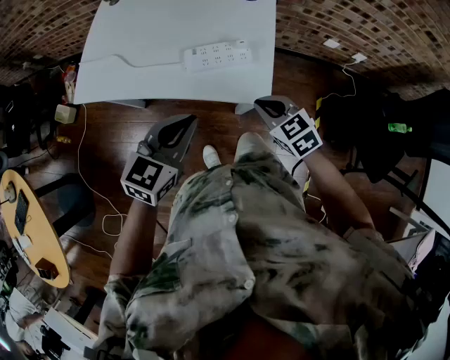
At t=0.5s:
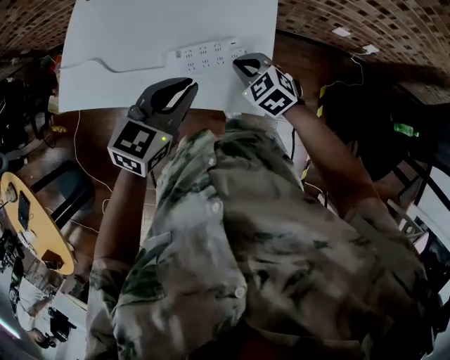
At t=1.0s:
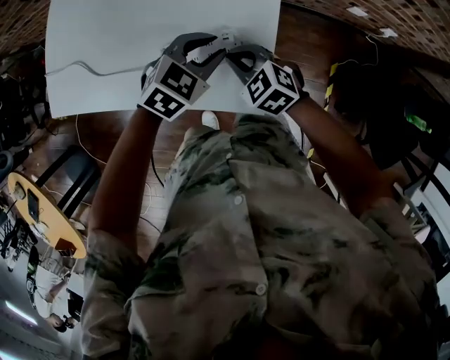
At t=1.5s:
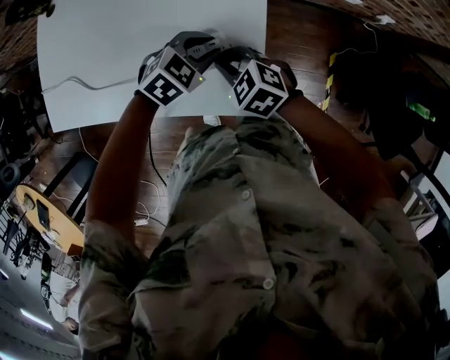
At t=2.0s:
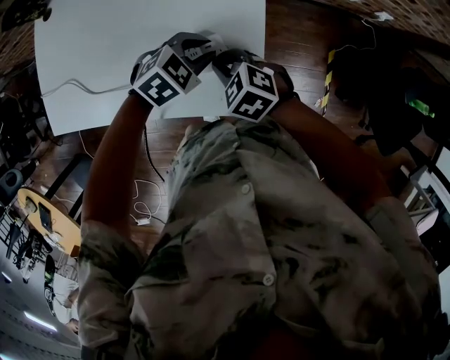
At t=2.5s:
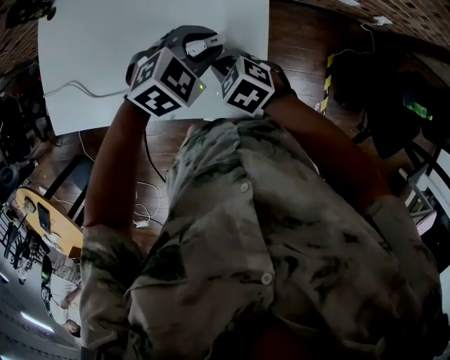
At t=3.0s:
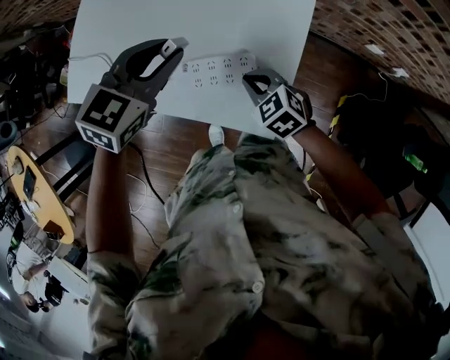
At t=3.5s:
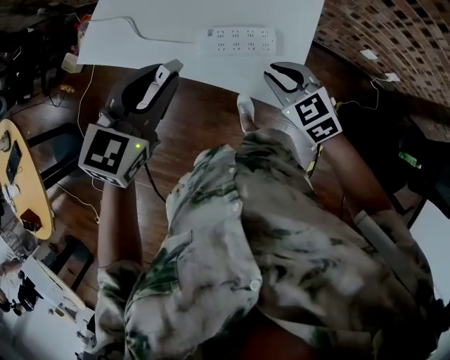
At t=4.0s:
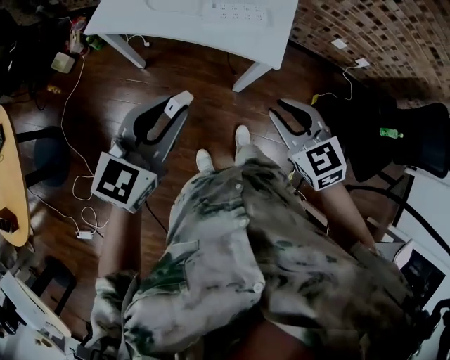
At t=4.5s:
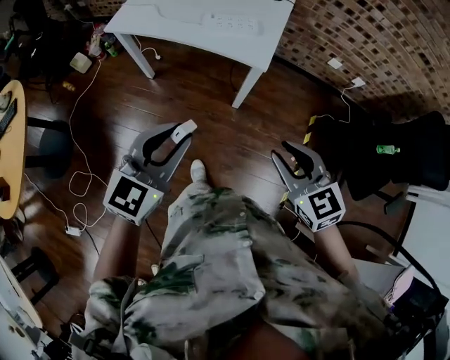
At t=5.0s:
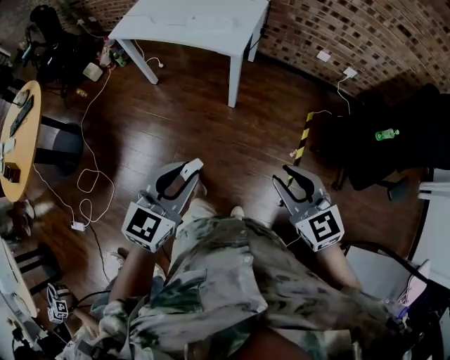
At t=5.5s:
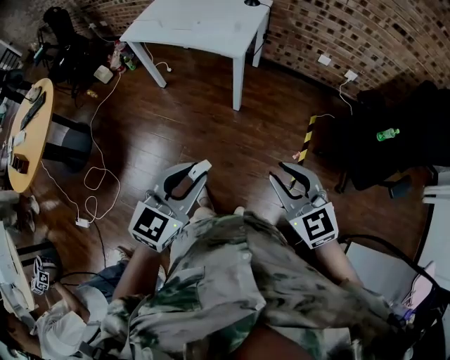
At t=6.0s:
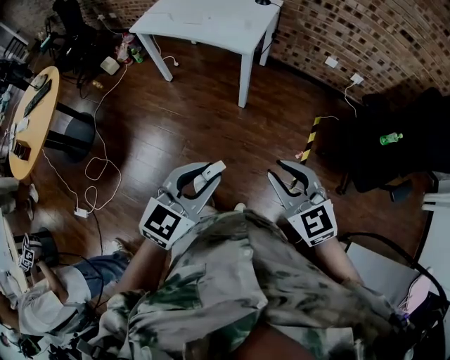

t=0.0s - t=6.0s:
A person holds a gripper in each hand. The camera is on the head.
t=0.0s - t=2.0s: The left gripper ends up approximately 35 cm from where it was, angles its fingers downward, by roughly 30 degrees, and opens its fingers. Meanwhile the right gripper ends up some 20 cm from where it was.
t=2.0s - t=4.0s: The left gripper changes place by roughly 50 cm, and tips its fingers upward by roughly 40 degrees. Meanwhile the right gripper ends up roughly 40 cm from where it was, swivels some 20 degrees, and opens its fingers.
t=4.0s - t=6.0s: The pair of grippers is taken backward and to the right, some 40 cm.

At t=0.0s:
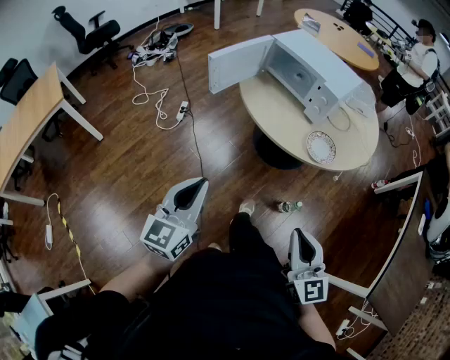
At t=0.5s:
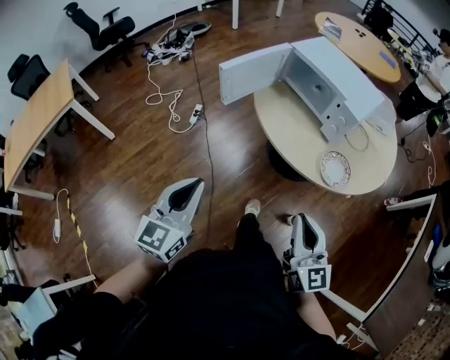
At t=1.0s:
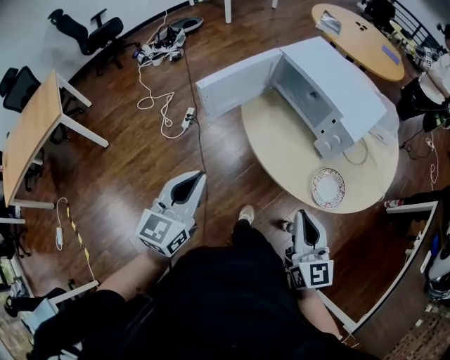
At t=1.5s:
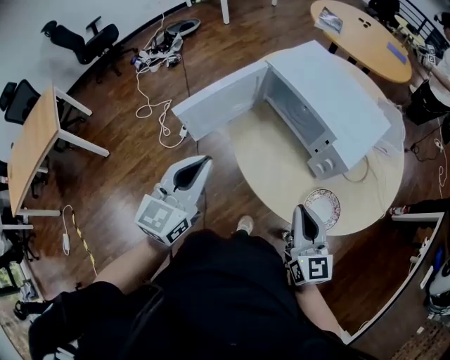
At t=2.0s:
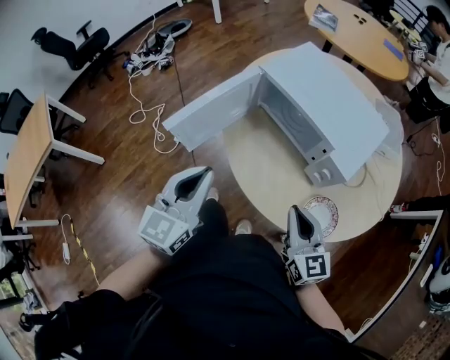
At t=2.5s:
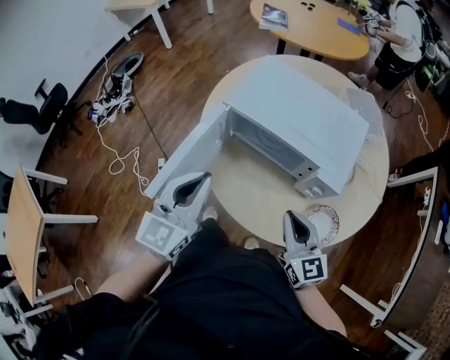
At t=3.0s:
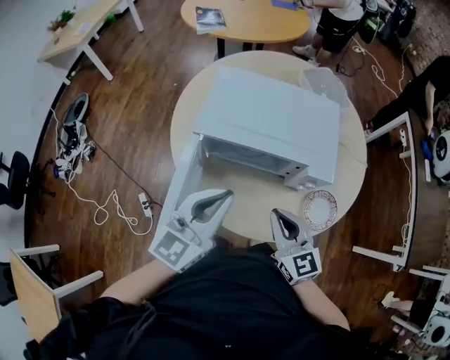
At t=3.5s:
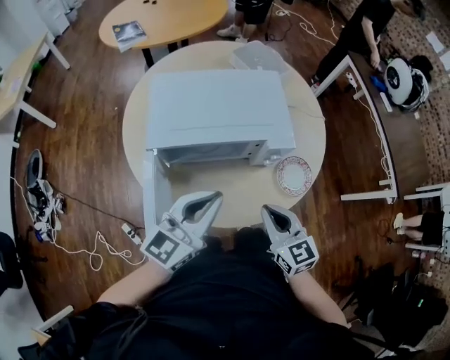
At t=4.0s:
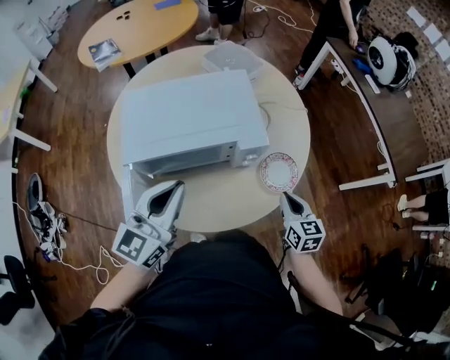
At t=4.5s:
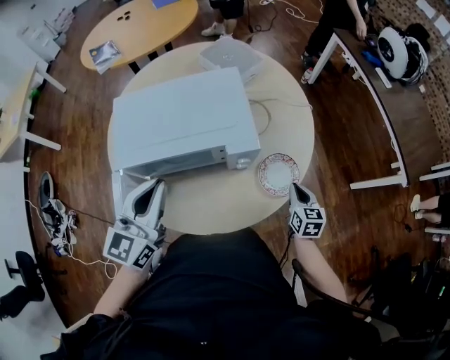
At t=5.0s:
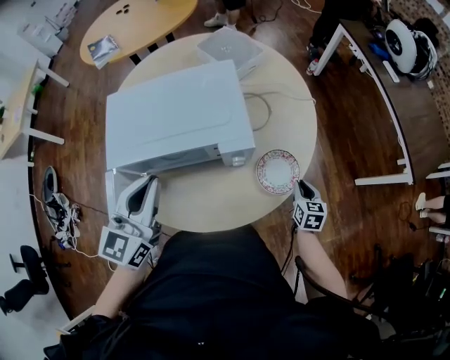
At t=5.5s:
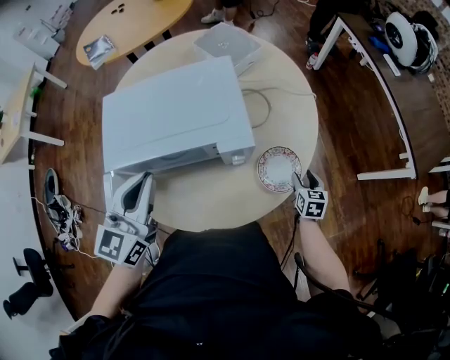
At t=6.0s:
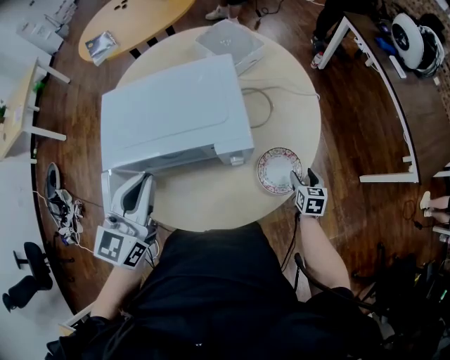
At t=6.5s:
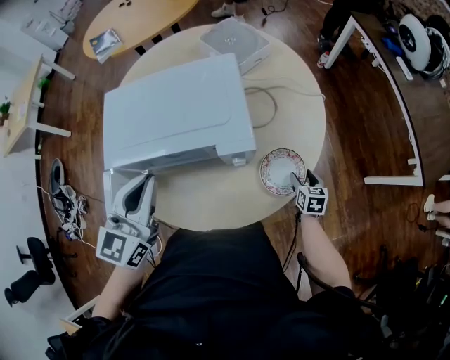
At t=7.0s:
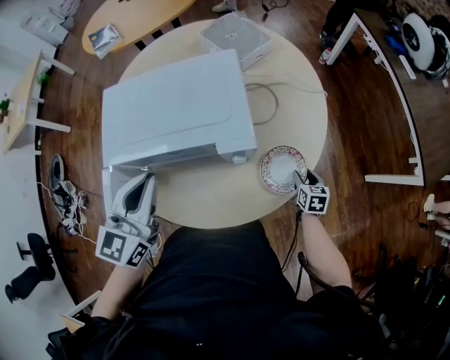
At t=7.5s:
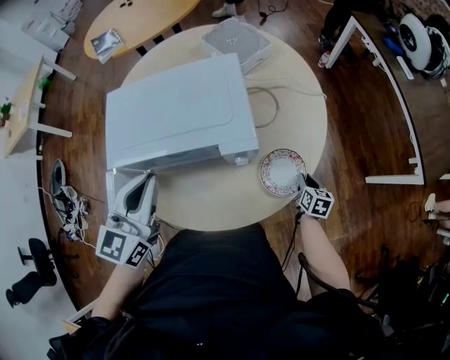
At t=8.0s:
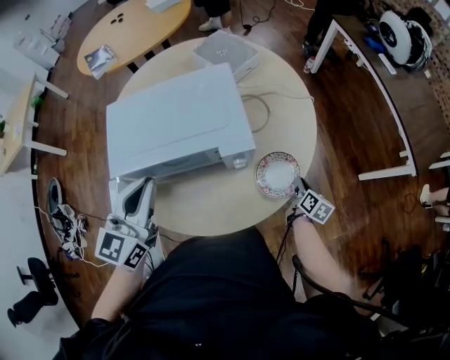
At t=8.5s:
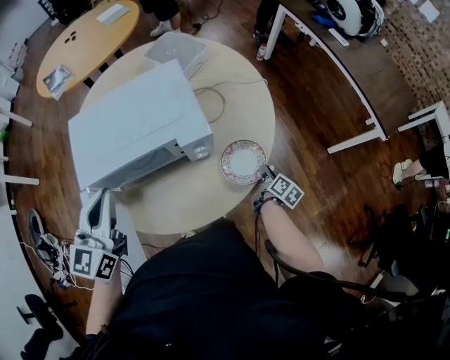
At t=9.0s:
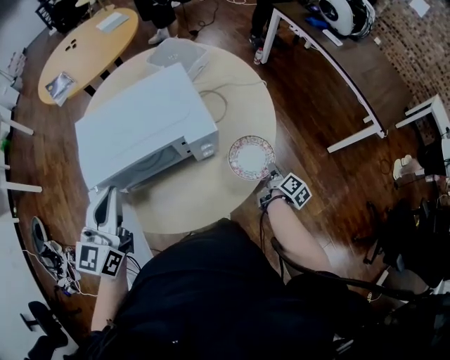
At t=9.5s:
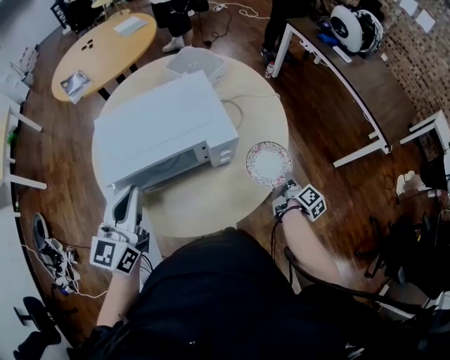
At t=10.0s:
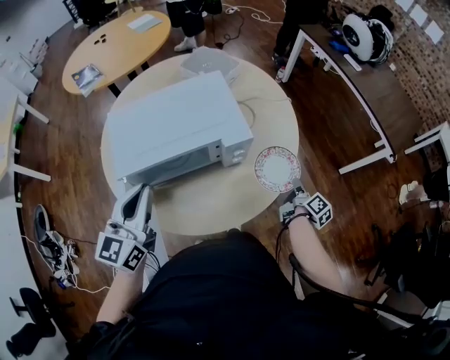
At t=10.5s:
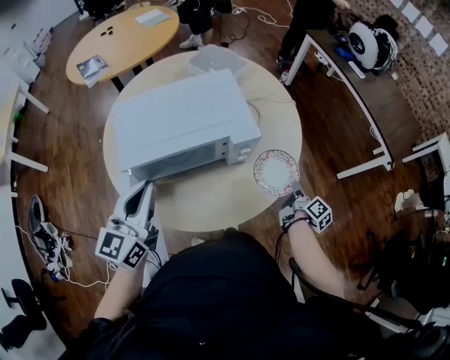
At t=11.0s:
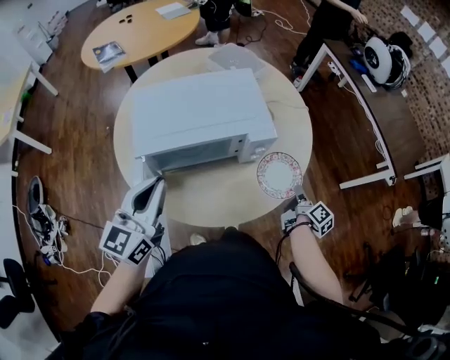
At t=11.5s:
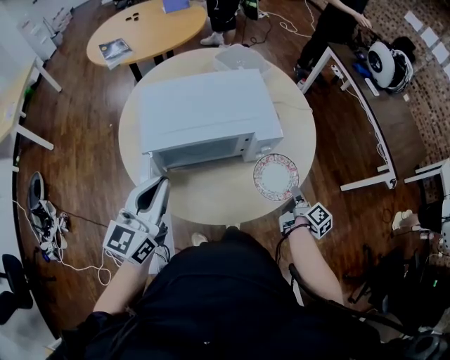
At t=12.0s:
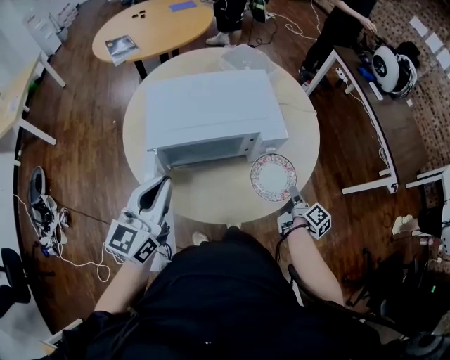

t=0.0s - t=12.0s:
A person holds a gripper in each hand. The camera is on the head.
t=0.0s - t=2.0s: Both grippers move forward, about 35 cm.
t=2.0s - t=4.0s: The left gripper changes place by some 20 cm, and changes its angle by approximately 60 degrees; the right gripper changes place by some 10 cm, and swivels approximately 70 degrees.
t=4.0s - t=6.0s: The right gripper is displaced downward, forward and to the right by approximately 25 cm, and opens up.
t=6.0s - t=8.0s: The right gripper swivels approximately 40 degrees, and closes its fingers.
t=8.0s - t=10.0s: The right gripper heads upward and backward, covering approximately 10 cm, and turns by some 40 degrees; the left gripper changes place by approximately 5 cm.
t=10.0s - t=12.0s: The right gripper goes approximately 10 cm to the left; the left gripper shifts by some 5 cm.

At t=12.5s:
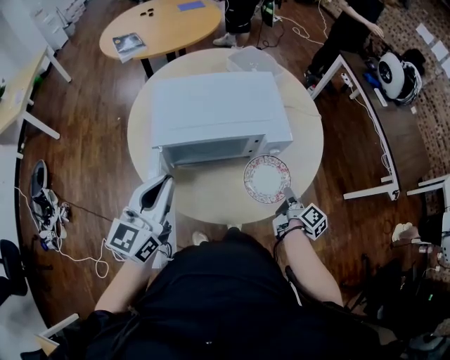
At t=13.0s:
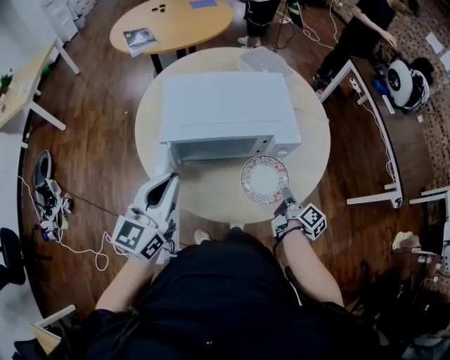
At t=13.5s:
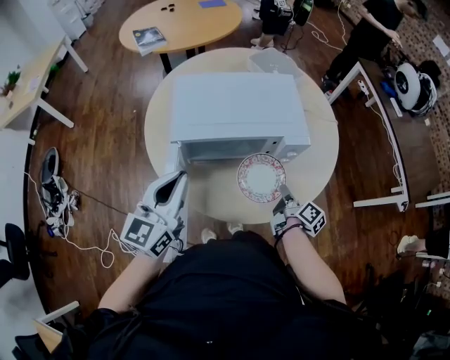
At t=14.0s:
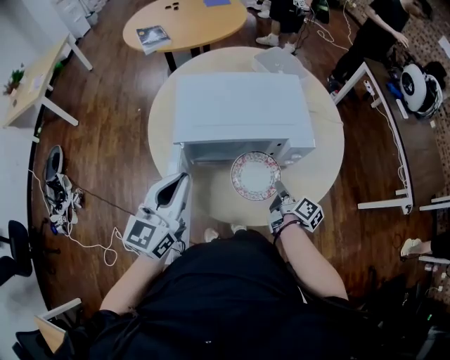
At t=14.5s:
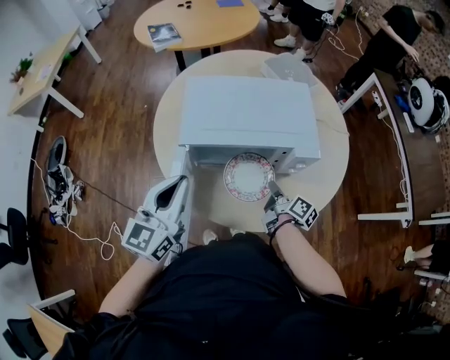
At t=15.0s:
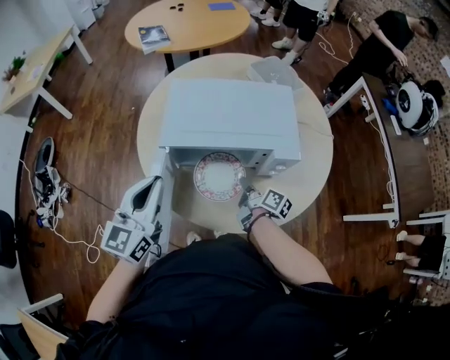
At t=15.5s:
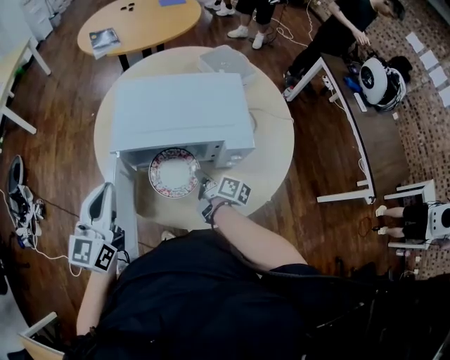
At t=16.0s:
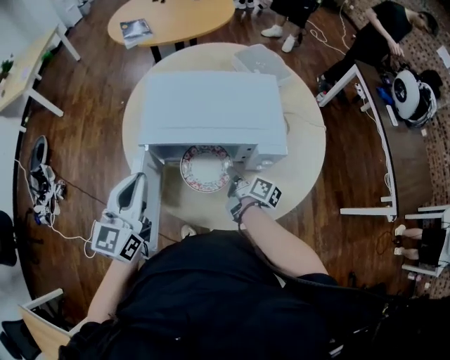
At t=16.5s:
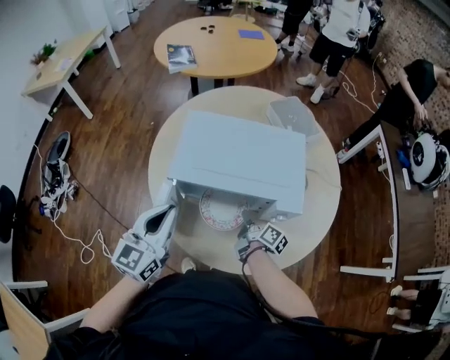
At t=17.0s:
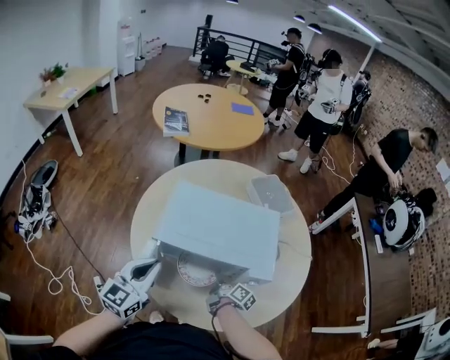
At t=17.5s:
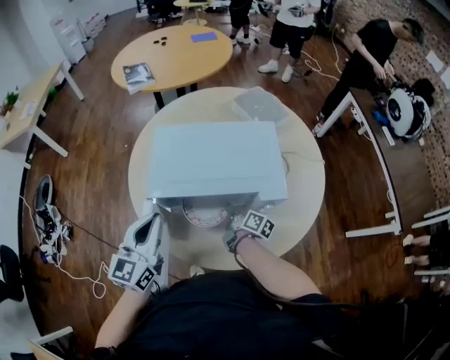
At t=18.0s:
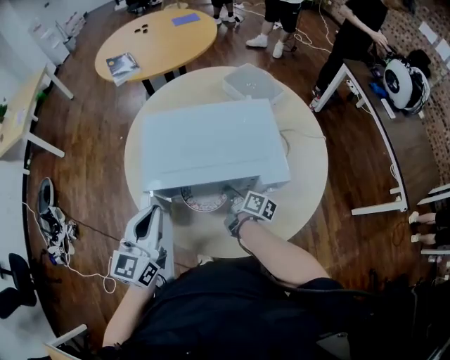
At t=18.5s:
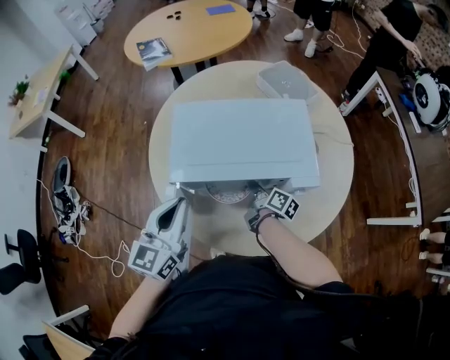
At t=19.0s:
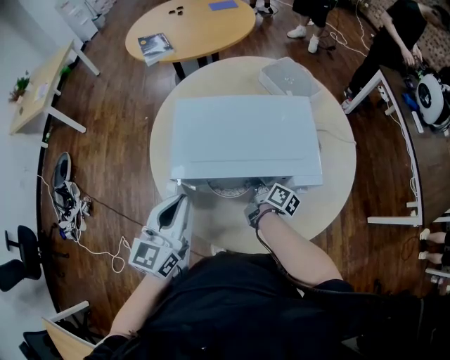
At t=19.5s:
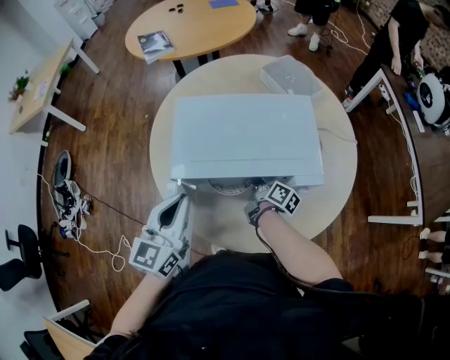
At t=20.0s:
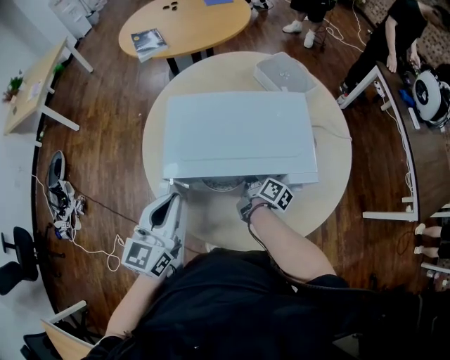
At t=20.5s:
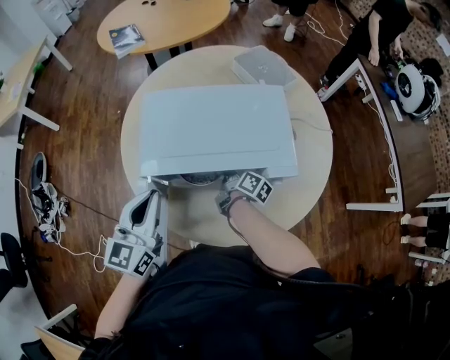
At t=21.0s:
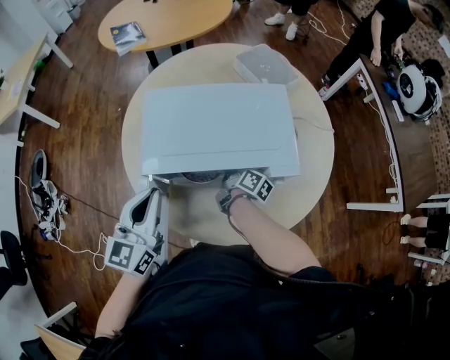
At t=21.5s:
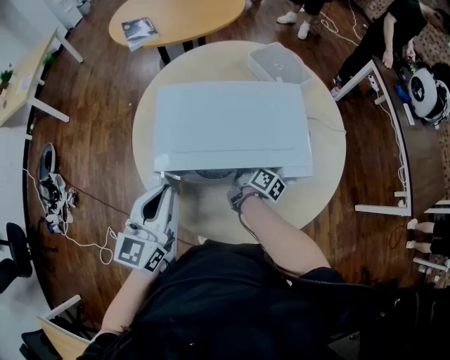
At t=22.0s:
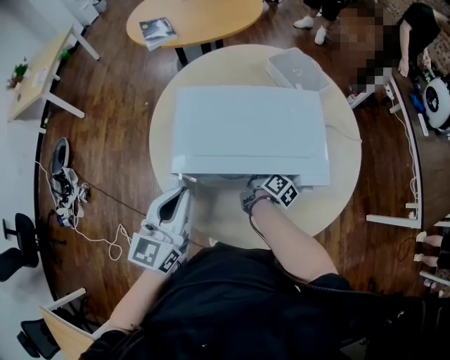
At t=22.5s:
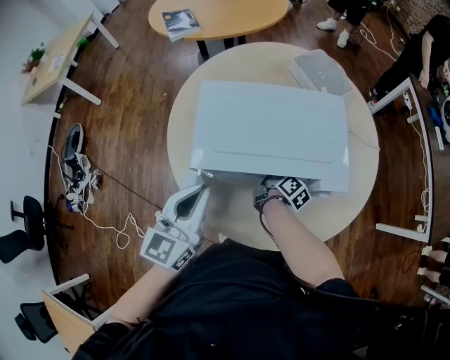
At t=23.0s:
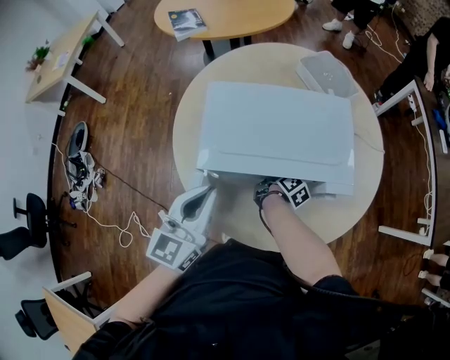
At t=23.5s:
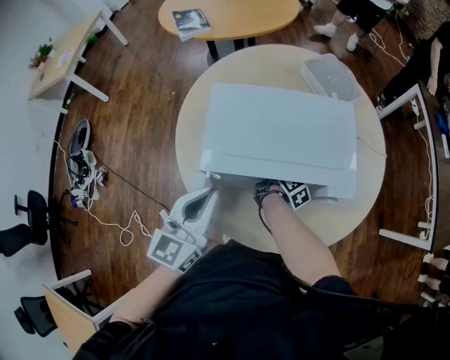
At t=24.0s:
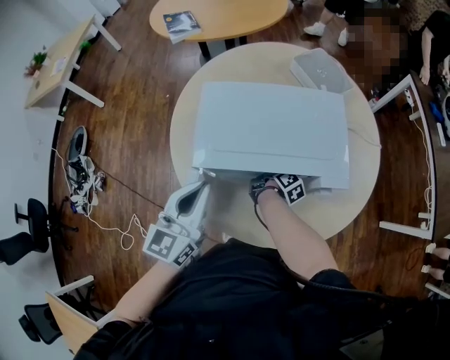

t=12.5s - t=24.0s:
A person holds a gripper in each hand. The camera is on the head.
t=12.5s - t=14.5s: The right gripper goes about 15 cm to the left, and rotates approximately 20 degrees.
t=14.5s - t=16.5s: The right gripper shifts about 5 cm forward.
t=16.5s - t=18.5s: The right gripper ends up about 5 cm from where it was.
t=18.5s - t=22.0s: The grippers make only small movements.
t=22.0s - t=24.0s: The grippers stay close to where they were, moving slightly.
